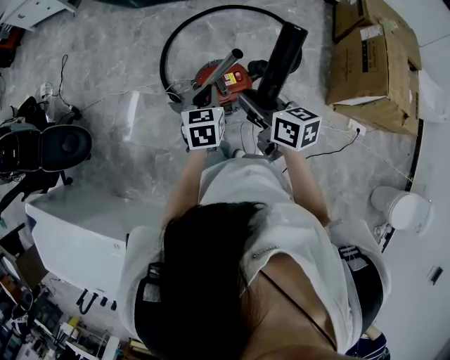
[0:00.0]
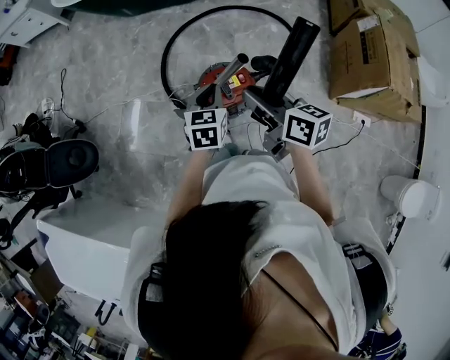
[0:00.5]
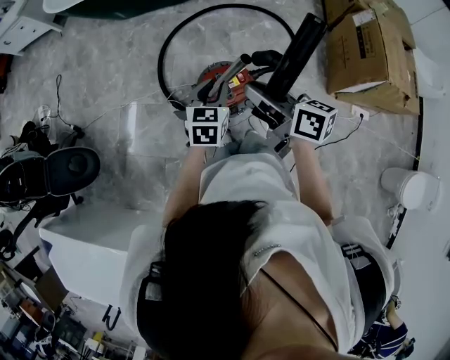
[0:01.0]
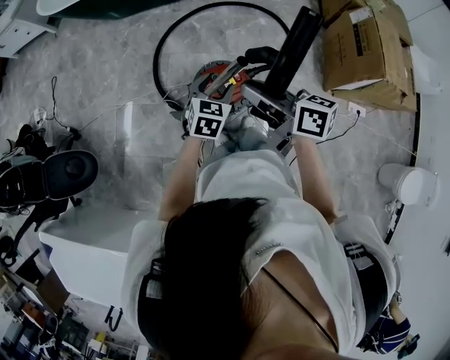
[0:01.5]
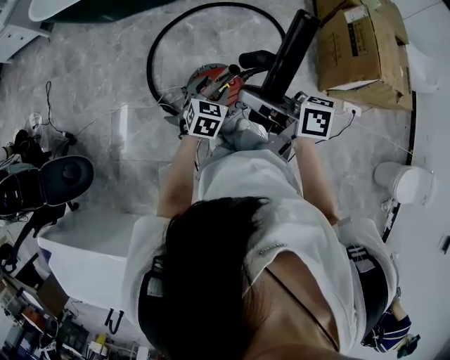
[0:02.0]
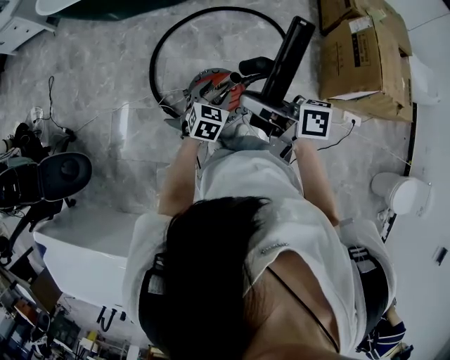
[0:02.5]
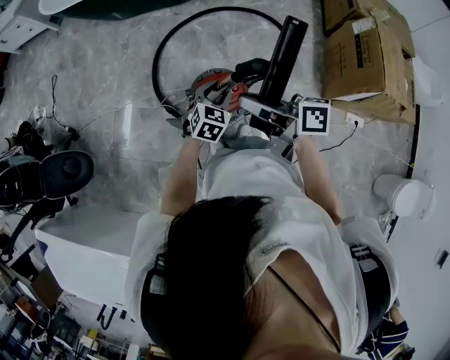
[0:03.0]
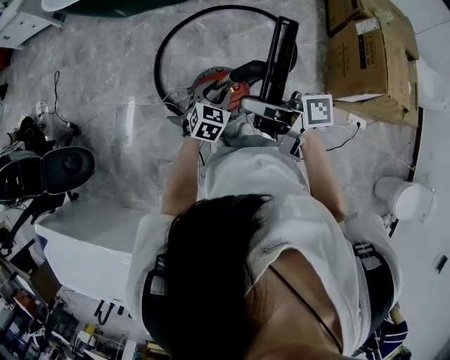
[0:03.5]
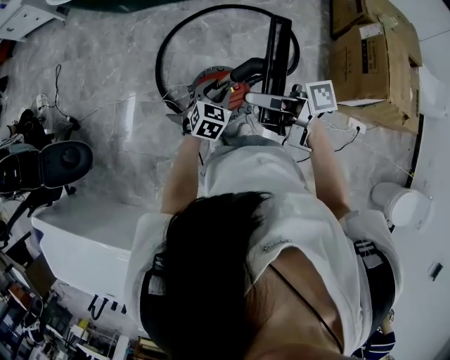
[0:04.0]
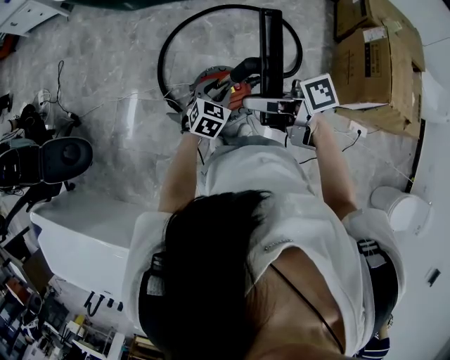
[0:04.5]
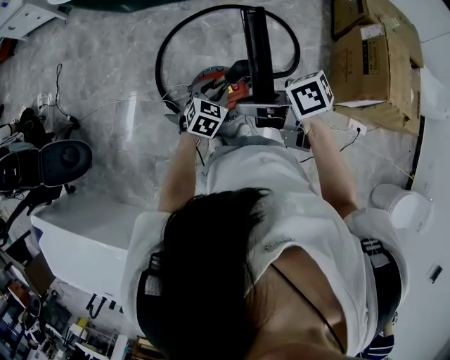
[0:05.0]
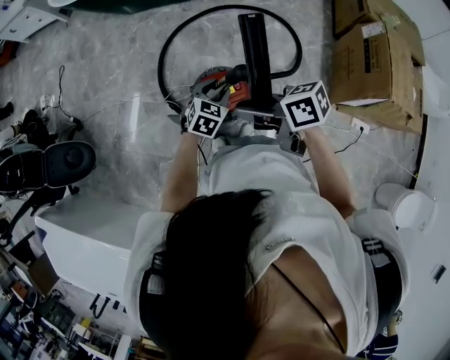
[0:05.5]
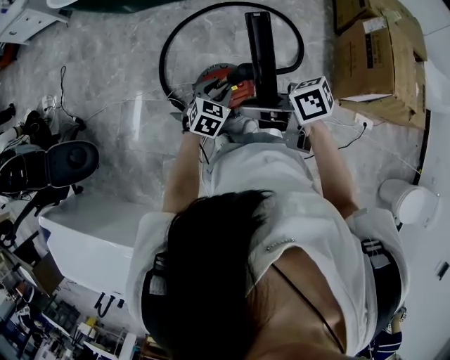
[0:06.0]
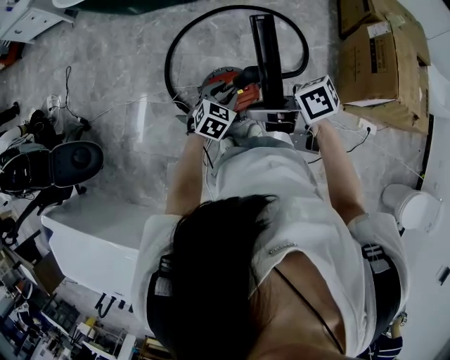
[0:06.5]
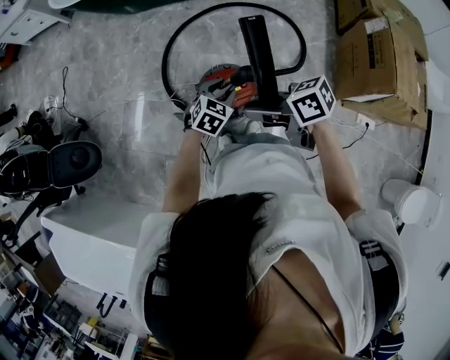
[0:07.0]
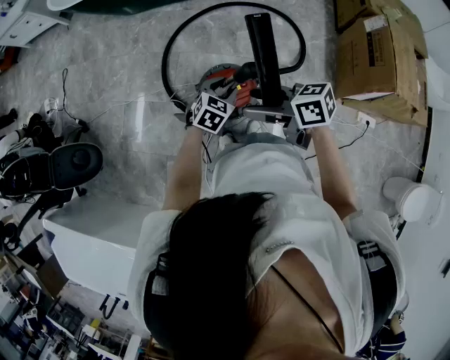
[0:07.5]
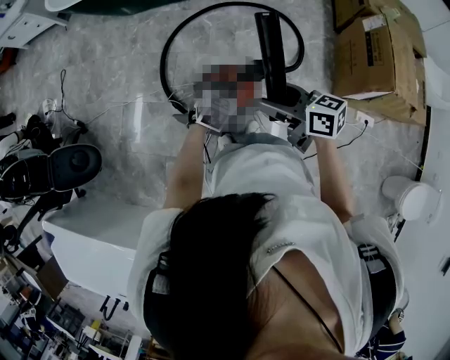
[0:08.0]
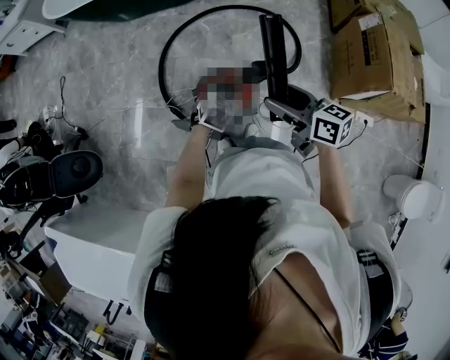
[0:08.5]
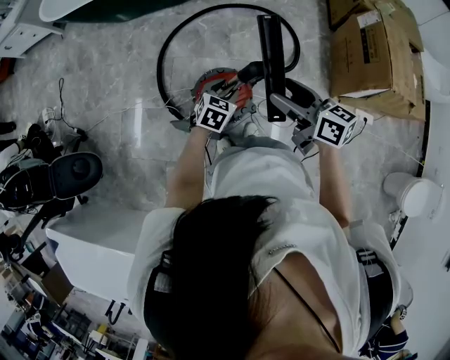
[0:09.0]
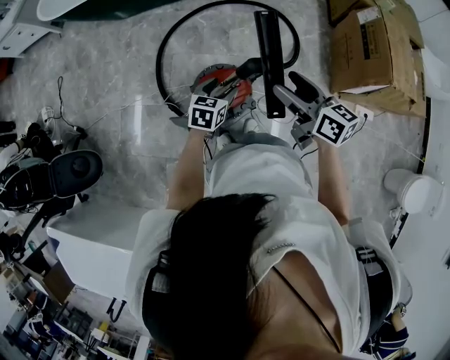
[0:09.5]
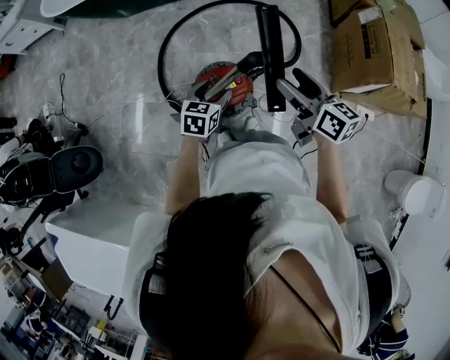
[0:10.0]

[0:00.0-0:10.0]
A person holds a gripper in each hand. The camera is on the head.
0:00.0 to 0:02.0: The left gripper shifts approximately 10 cm to the right, downward and forward, turns by about 30 degrees, and opens up. The right gripper goes about 5 cm upward, and changes its angle by about 20 degrees.
0:02.0 to 0:04.0: The right gripper changes its angle by roughly 30 degrees.
0:04.0 to 0:06.0: The right gripper swivels roughly 30 degrees.
0:06.0 to 0:08.0: The right gripper goes roughly 5 cm to the right, swivels some 30 degrees, and opens its fingers.
0:08.0 to 0:10.0: The right gripper shifts about 10 cm to the right, and turns by about 30 degrees; the left gripper swivels some 20 degrees, and opens.

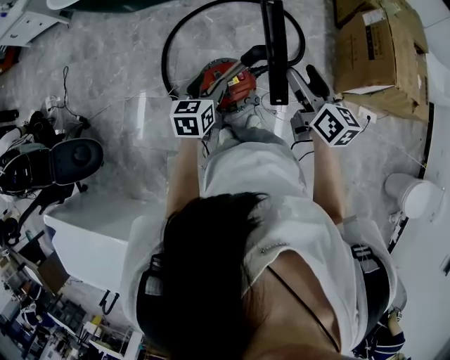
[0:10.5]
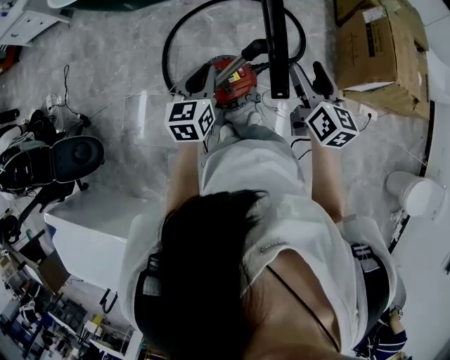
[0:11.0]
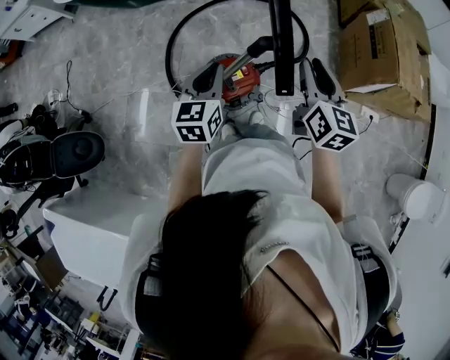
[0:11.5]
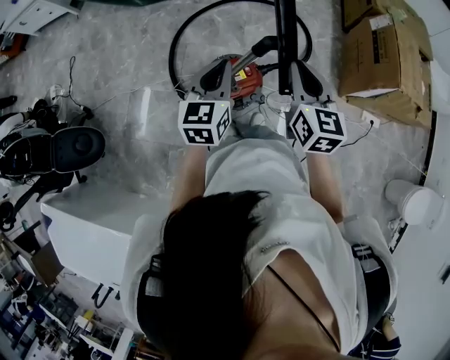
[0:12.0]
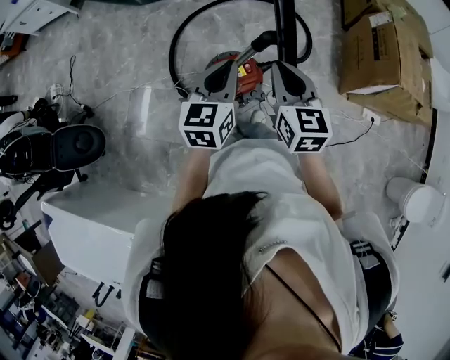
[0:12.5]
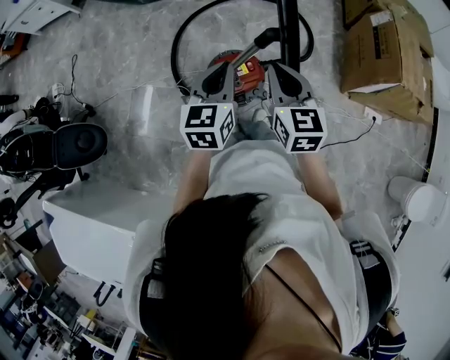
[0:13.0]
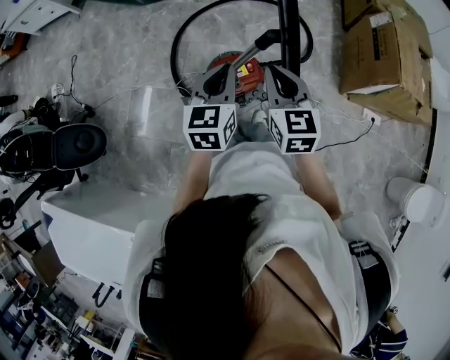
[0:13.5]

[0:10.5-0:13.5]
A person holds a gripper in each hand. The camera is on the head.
0:10.5 to 0:12.0: The left gripper shifts about 10 cm upward, and closes up; the right gripper shifts roughly 5 cm to the left, rotates some 20 degrees, and closes its fingers.
0:12.0 to 0:13.5: The right gripper shifts about 5 cm to the left.

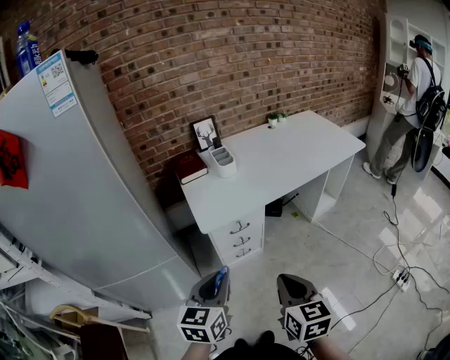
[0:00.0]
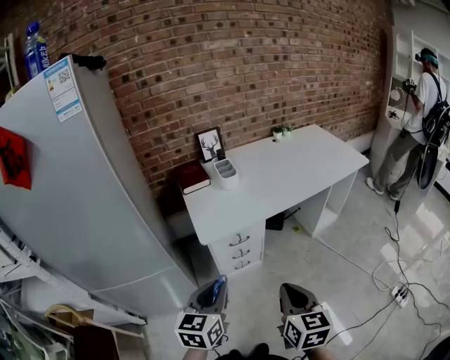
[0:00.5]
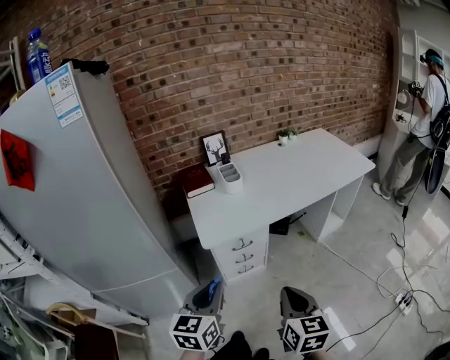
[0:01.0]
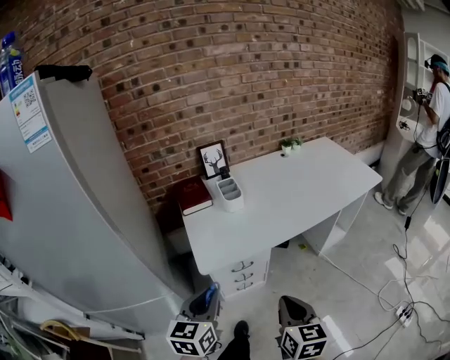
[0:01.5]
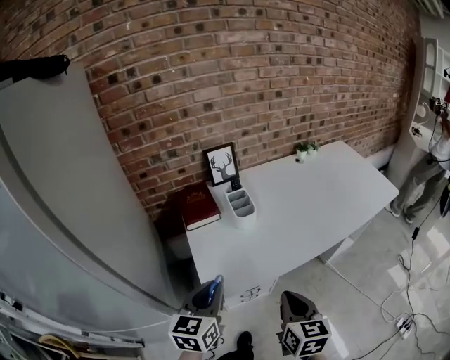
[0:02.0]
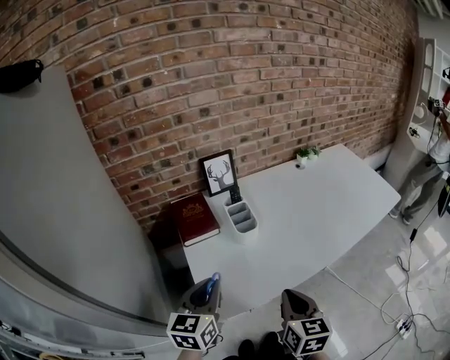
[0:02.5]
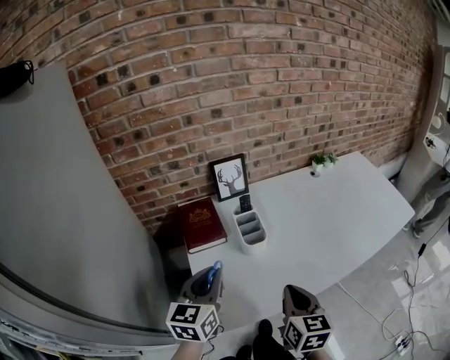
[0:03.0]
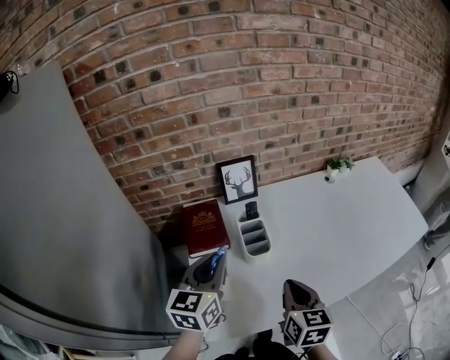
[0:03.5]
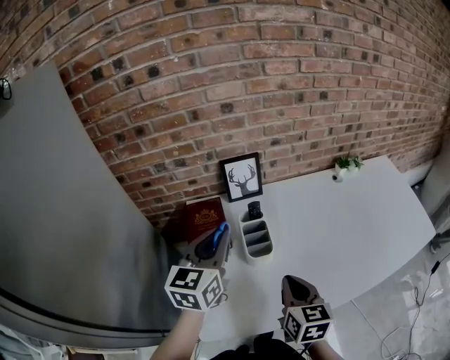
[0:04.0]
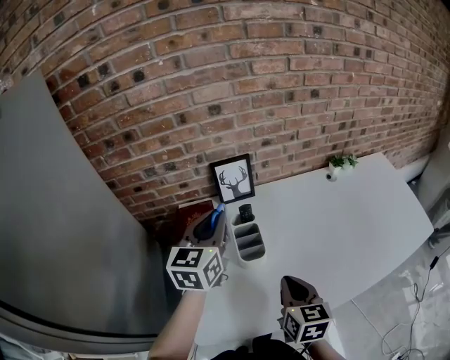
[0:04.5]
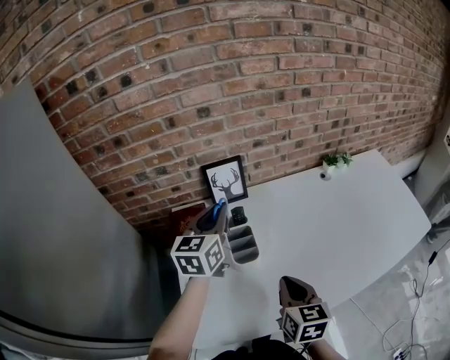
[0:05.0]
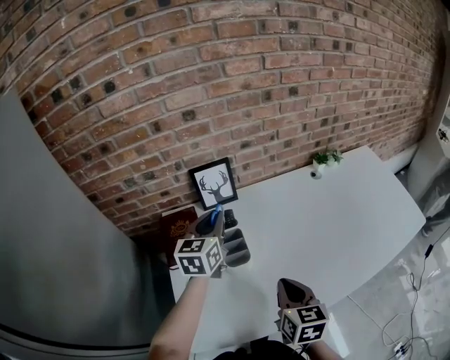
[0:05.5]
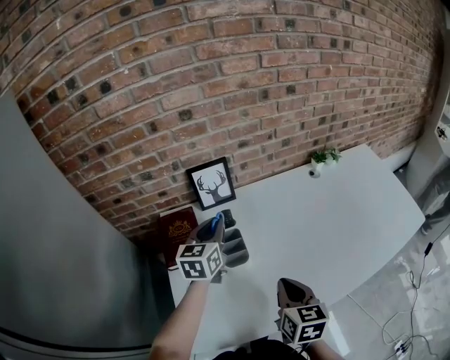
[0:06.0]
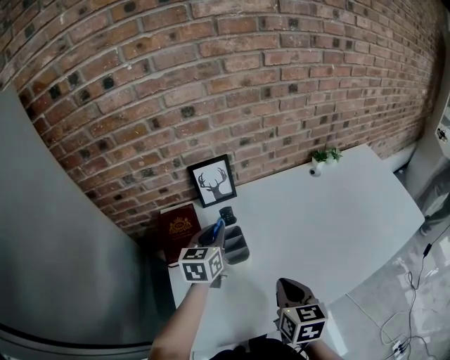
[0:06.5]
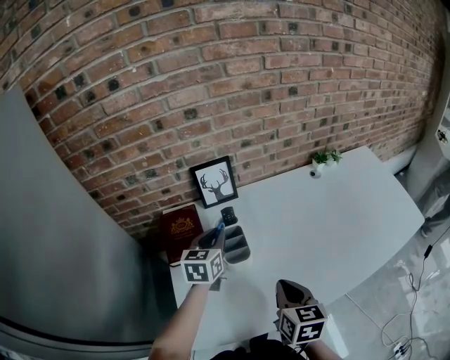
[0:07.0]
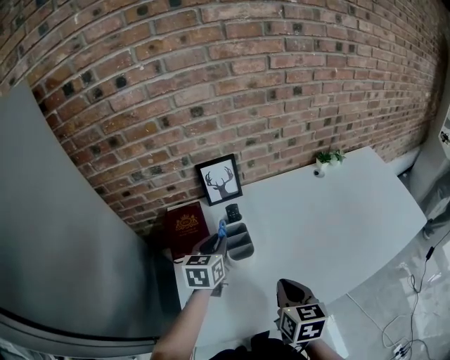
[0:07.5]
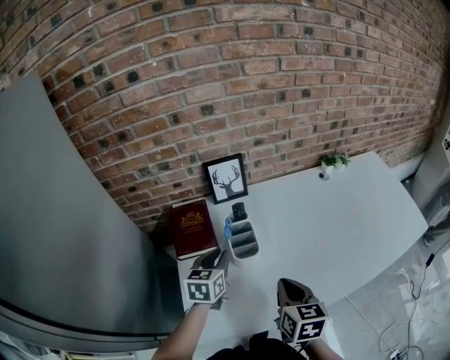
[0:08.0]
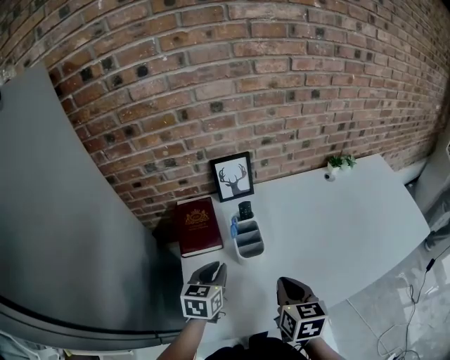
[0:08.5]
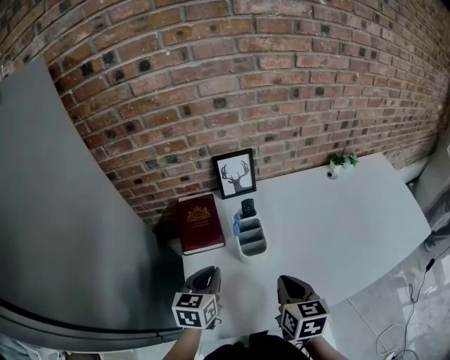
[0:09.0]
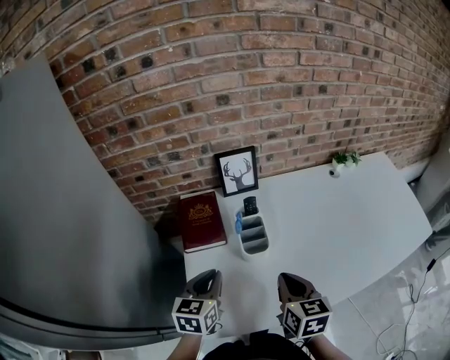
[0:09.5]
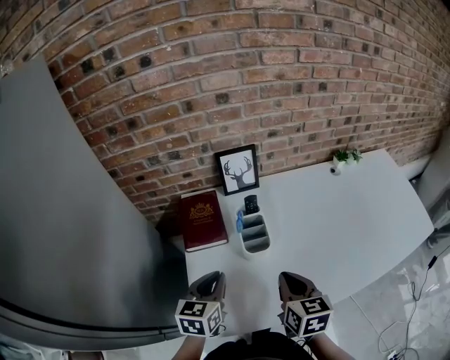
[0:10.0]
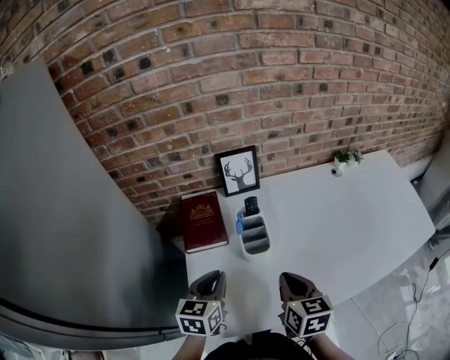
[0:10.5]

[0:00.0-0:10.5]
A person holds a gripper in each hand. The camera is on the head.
0:00.0 to 0:02.0: The two grippers go approximately 30 cm forward.
0:02.0 to 0:04.0: Both grippers move forward, about 30 cm.
0:04.0 to 0:06.5: The right gripper changes place by some 5 cm, while the left gripper goes roughly 15 cm downward, forward and to the right.
0:06.5 to 0:08.5: The left gripper moves backward, approximately 15 cm.
0:08.5 to 0:10.5: There are only small adjustments of the grippers.

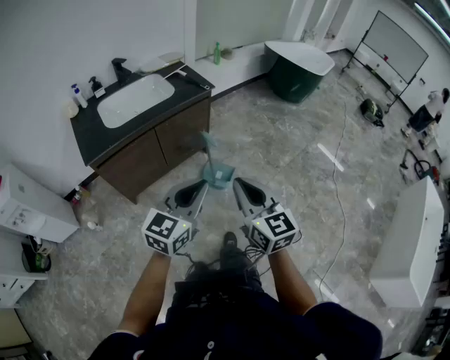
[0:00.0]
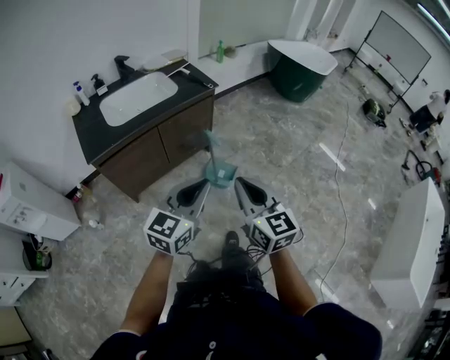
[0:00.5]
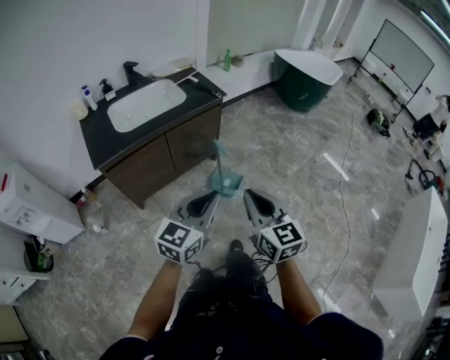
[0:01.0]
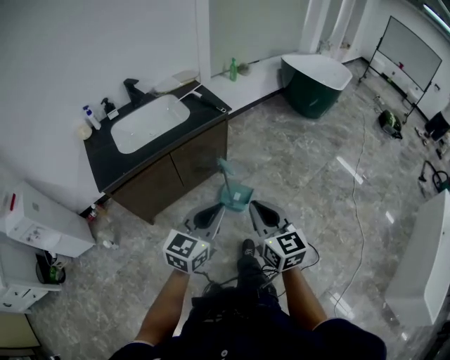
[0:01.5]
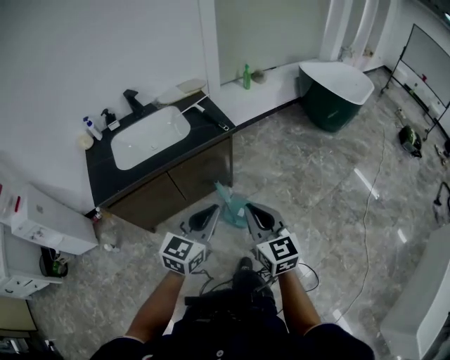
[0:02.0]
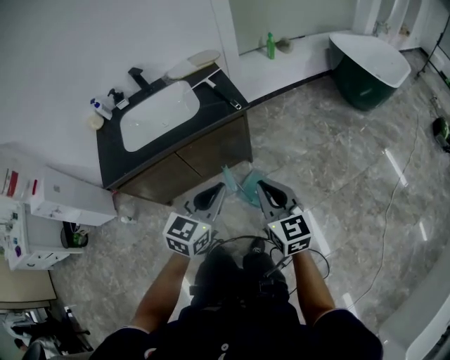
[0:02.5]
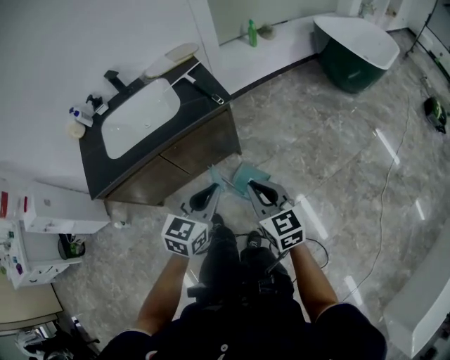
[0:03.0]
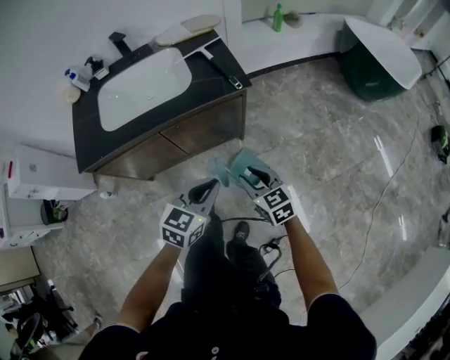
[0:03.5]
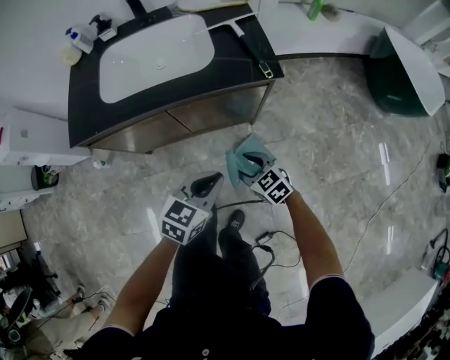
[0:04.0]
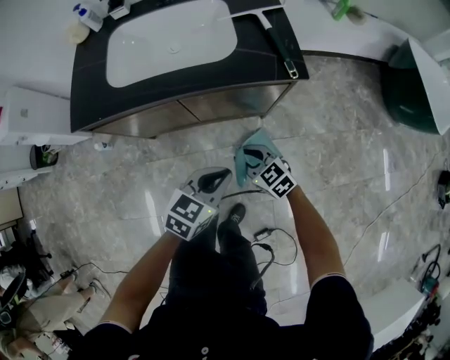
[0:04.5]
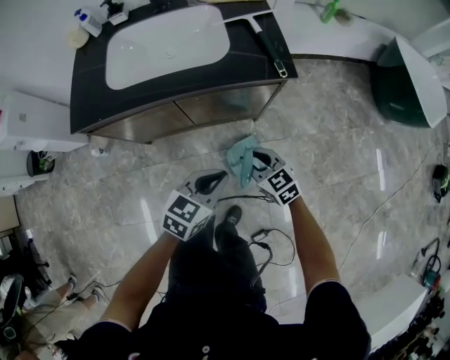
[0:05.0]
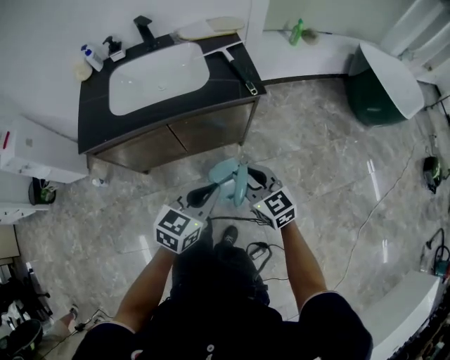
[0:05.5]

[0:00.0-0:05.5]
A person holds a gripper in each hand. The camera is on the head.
0:00.0 to 0:02.0: Both grippers move forward, approximately 20 cm.
0:02.0 to 0:03.5: Both grippers move downward and forward, roughly 25 cm. The right gripper swivels approximately 30 degrees, and opens.
0:03.5 to 0:05.5: The right gripper is displaced upward and to the left by about 10 cm, and opens, then closes again; the left gripper reaches about 10 cm downward, then returns.
